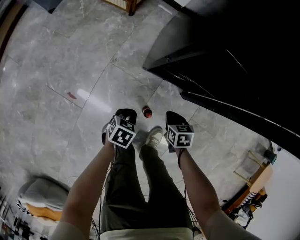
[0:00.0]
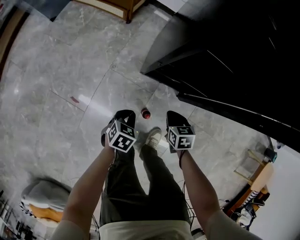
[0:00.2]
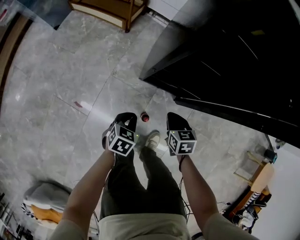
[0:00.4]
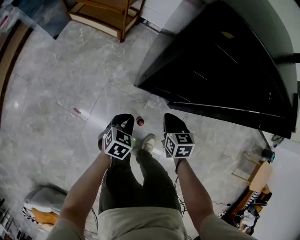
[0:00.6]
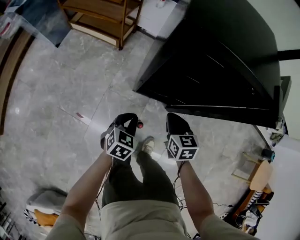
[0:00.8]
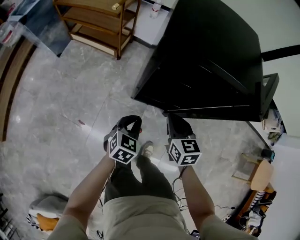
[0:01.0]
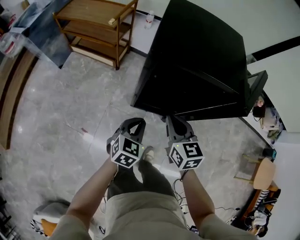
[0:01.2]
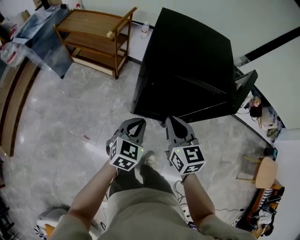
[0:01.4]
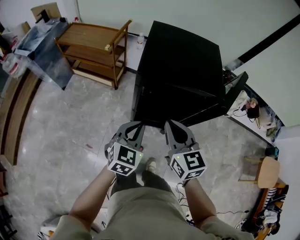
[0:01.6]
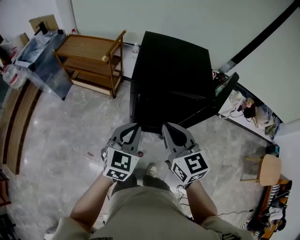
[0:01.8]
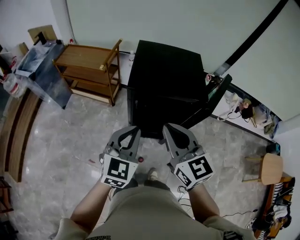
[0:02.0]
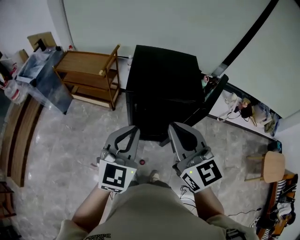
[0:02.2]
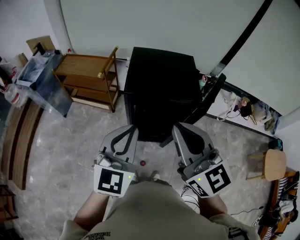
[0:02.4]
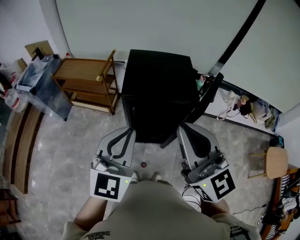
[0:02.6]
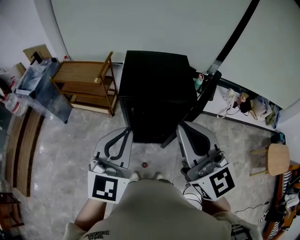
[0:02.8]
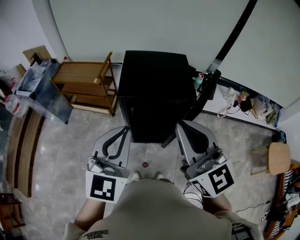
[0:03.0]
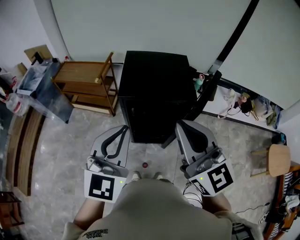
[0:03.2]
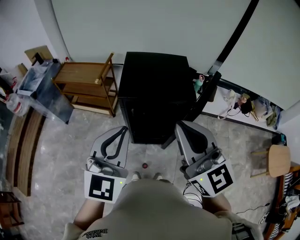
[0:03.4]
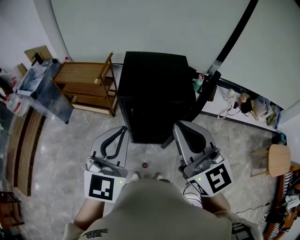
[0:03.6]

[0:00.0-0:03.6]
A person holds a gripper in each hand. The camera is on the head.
0:00.0 to 0:01.8: The two grippers go about 70 cm upward. The left gripper tips its fingers upward by approximately 40 degrees; the right gripper points its fingers some 50 degrees further upward.
0:01.8 to 0:03.6: Both grippers travel together upward, about 20 cm. The right gripper rotates roughly 20 degrees.

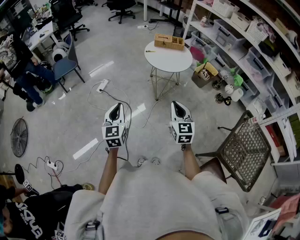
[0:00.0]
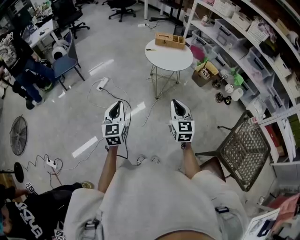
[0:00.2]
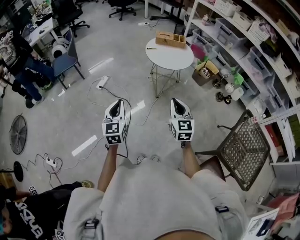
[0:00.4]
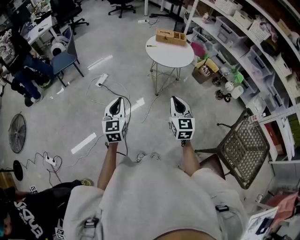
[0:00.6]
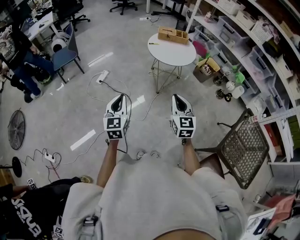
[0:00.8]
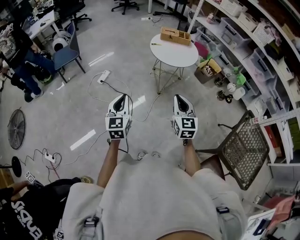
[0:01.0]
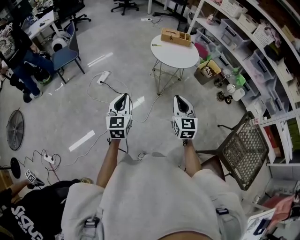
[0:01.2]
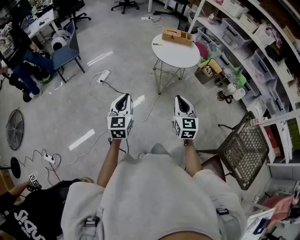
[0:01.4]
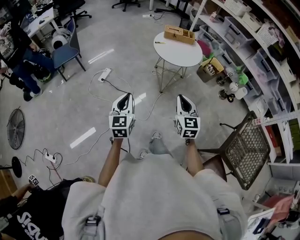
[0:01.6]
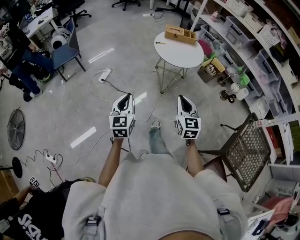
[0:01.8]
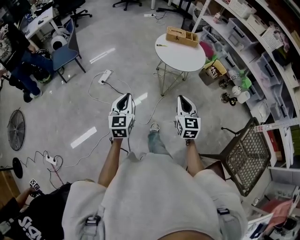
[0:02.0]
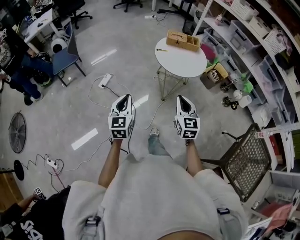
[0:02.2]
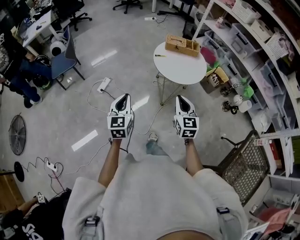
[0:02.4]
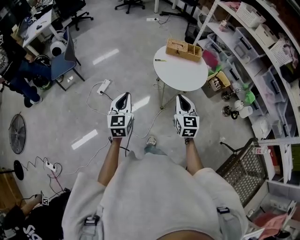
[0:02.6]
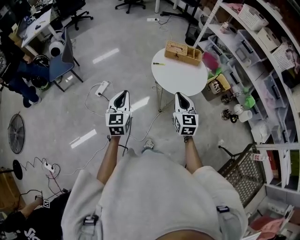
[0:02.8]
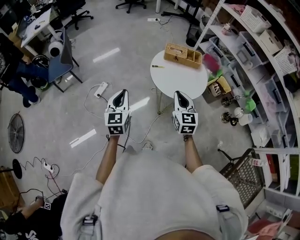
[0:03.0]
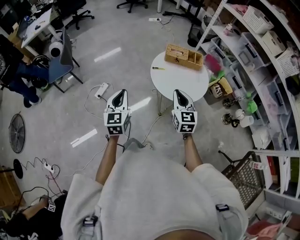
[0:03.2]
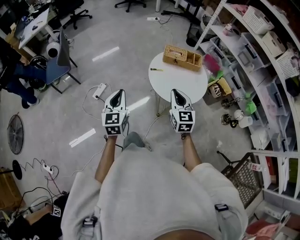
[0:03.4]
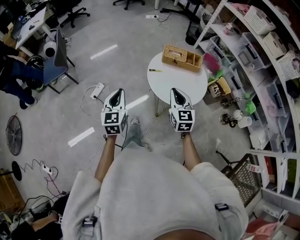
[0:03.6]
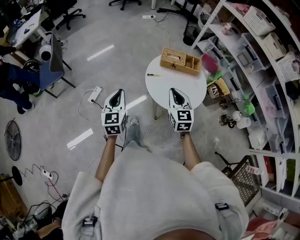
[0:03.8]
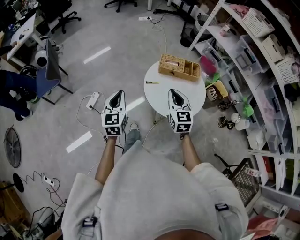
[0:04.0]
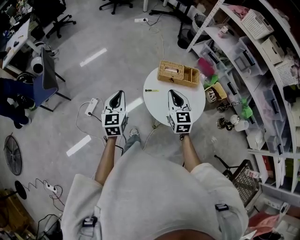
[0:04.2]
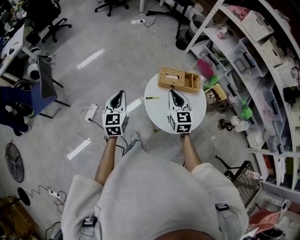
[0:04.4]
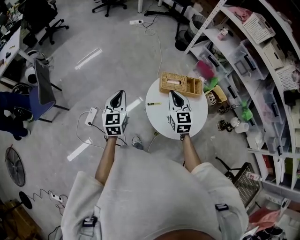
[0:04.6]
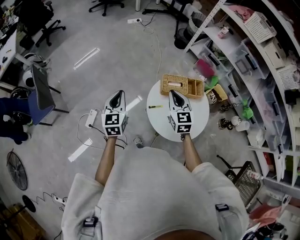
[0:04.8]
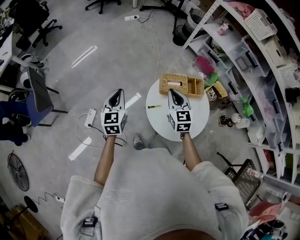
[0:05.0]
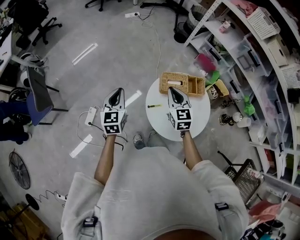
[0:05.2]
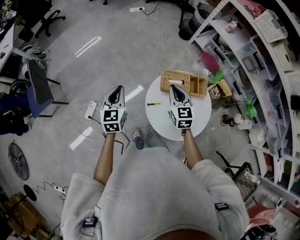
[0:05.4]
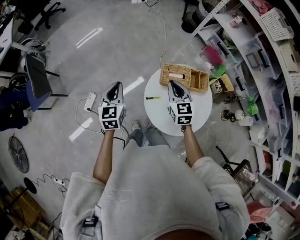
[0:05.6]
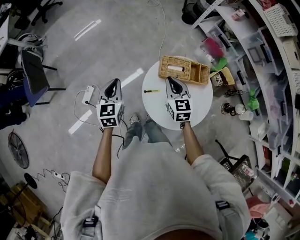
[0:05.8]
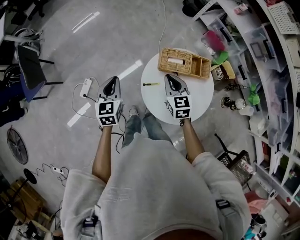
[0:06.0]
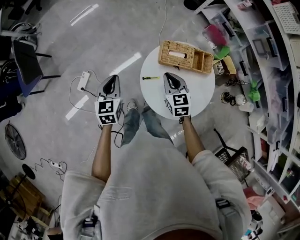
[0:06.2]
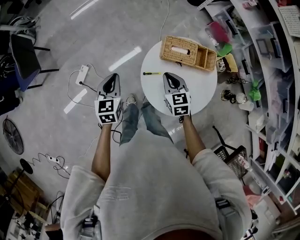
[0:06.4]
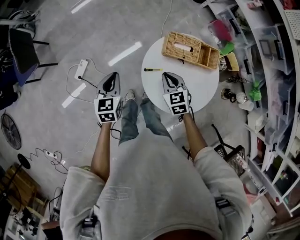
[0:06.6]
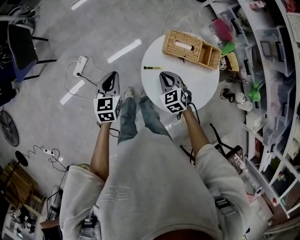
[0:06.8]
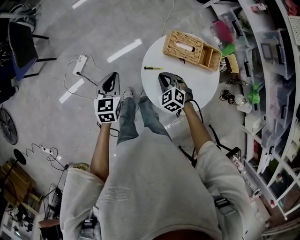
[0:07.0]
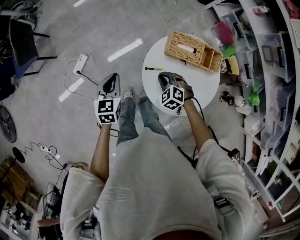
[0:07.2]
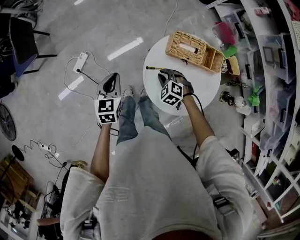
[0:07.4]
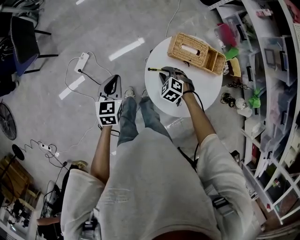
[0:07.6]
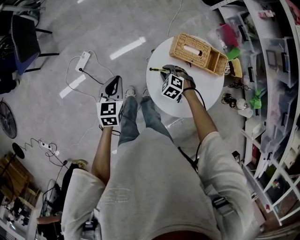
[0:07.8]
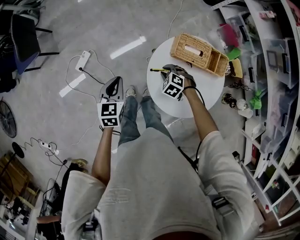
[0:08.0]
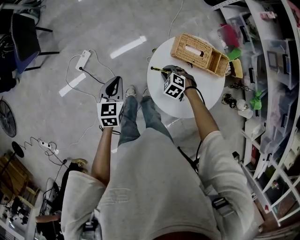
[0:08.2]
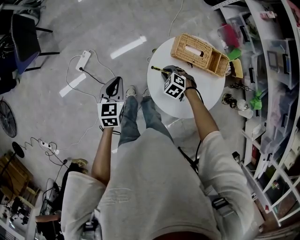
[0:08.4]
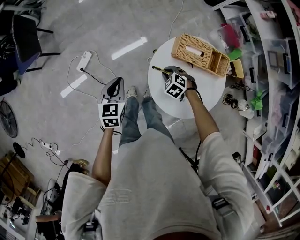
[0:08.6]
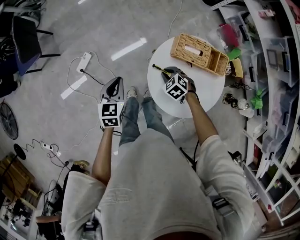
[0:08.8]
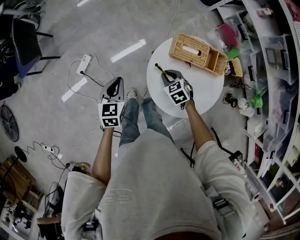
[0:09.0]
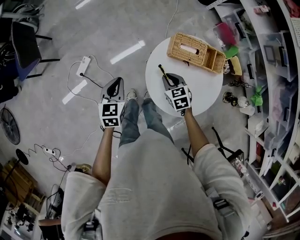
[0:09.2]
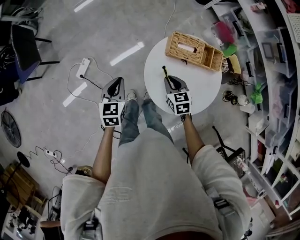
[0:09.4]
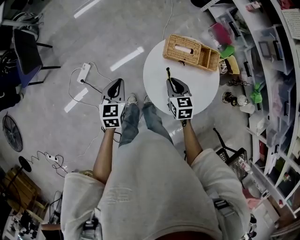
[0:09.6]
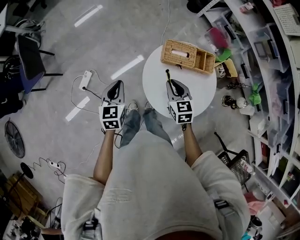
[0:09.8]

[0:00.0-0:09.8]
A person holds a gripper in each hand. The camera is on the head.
0:00.0 to 0:01.4: The right gripper ends up approximately 5 cm from where it was.
0:01.4 to 0:02.8: Both grippers move forward, roughly 30 cm.
0:02.8 to 0:04.2: The grippers both shift forward by roughly 25 cm.
0:04.2 to 0:05.6: The left gripper shifts roughly 15 cm forward. Meanwhile the right gripper is displaced forward and downward by roughly 15 cm.
0:05.6 to 0:07.0: The grippers both shift downward and backward by about 15 cm. The right gripper swivels roughly 50 degrees.
0:07.0 to 0:08.4: The right gripper shifts approximately 5 cm downward.
0:08.4 to 0:09.8: The right gripper is displaced upward by about 15 cm, and tips its fingers upward by about 30 degrees; the left gripper goes approximately 5 cm upward.

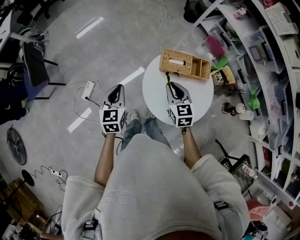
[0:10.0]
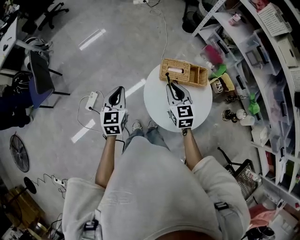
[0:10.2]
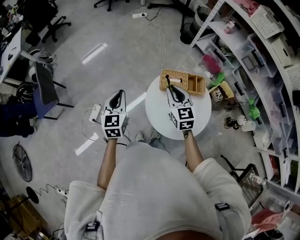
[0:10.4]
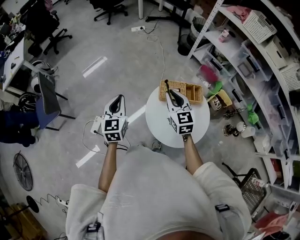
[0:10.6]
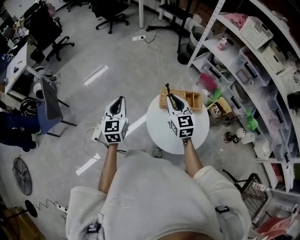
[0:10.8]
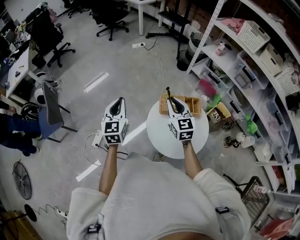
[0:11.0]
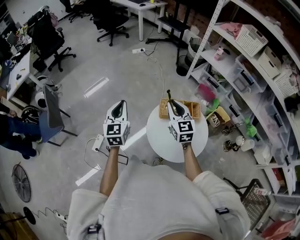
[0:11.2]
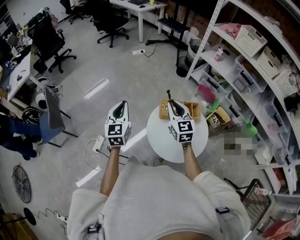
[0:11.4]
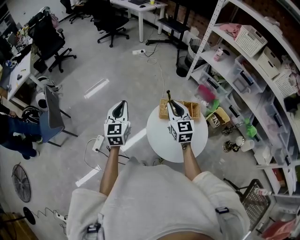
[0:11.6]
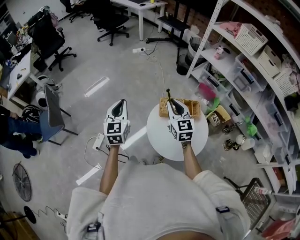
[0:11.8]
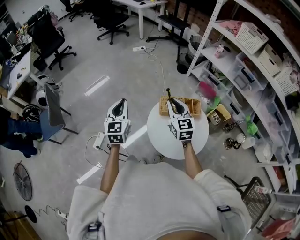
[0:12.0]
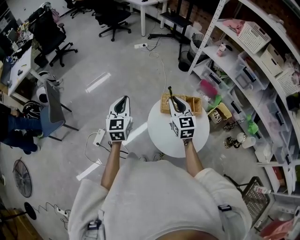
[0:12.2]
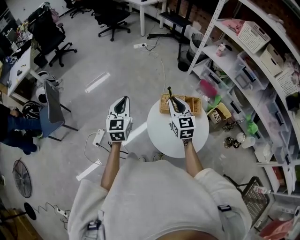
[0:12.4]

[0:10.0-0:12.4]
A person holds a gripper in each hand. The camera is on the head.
0:10.0 to 0:11.2: The grippers both shift upward and forward by some 15 cm. The right gripper swivels approximately 20 degrees.
0:11.2 to 0:12.4: Neither gripper changes place.

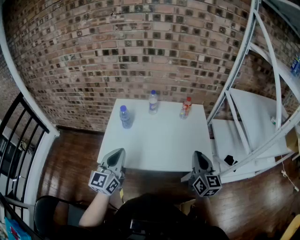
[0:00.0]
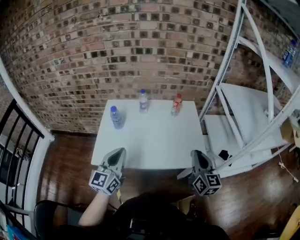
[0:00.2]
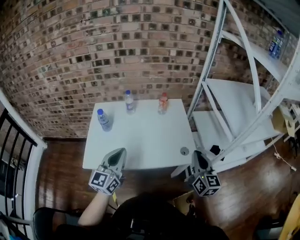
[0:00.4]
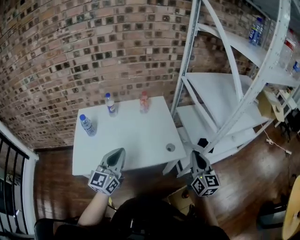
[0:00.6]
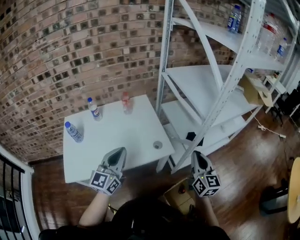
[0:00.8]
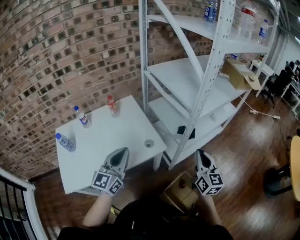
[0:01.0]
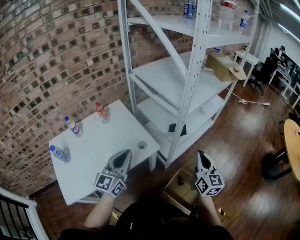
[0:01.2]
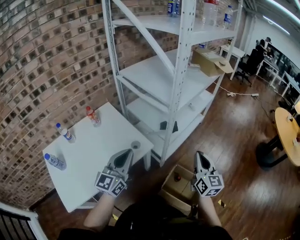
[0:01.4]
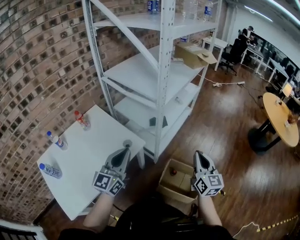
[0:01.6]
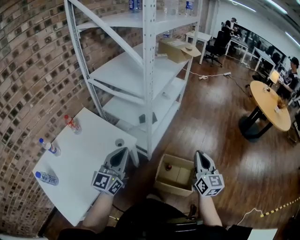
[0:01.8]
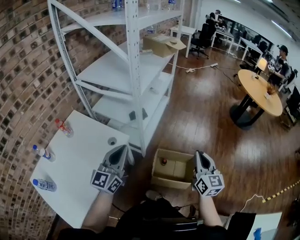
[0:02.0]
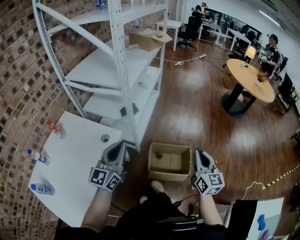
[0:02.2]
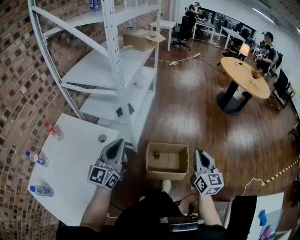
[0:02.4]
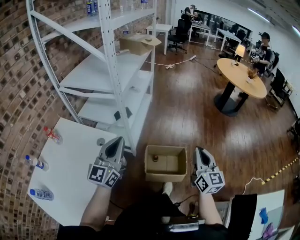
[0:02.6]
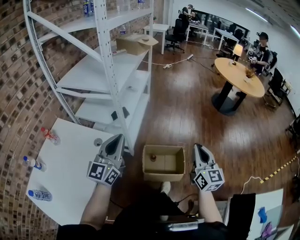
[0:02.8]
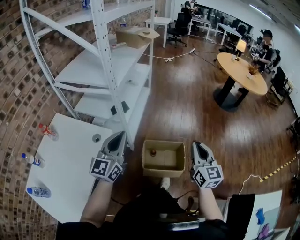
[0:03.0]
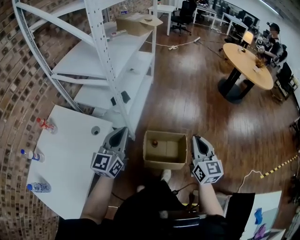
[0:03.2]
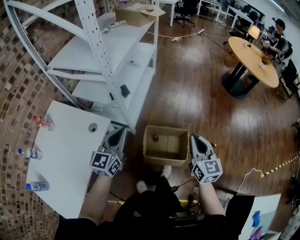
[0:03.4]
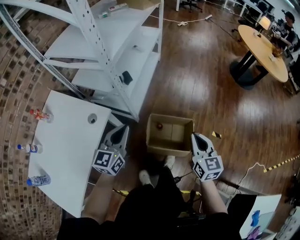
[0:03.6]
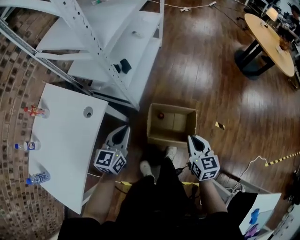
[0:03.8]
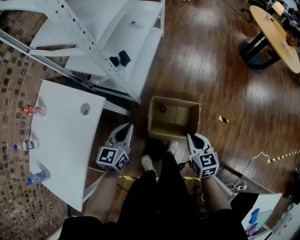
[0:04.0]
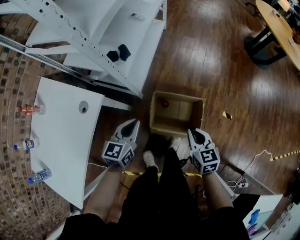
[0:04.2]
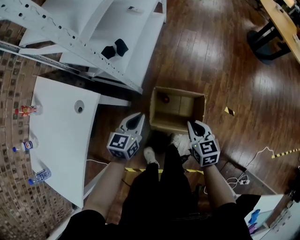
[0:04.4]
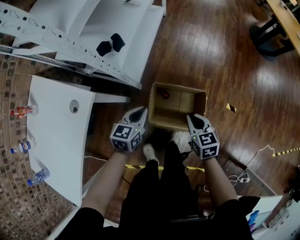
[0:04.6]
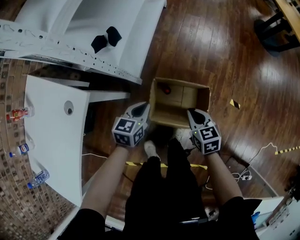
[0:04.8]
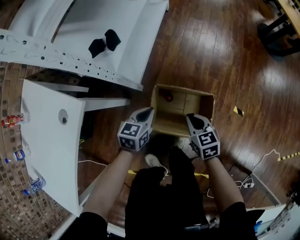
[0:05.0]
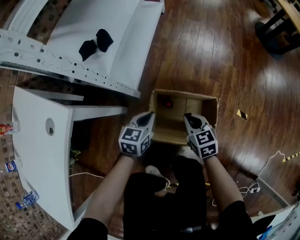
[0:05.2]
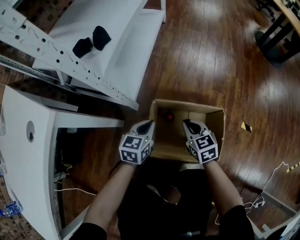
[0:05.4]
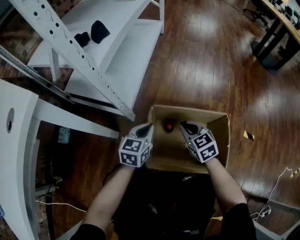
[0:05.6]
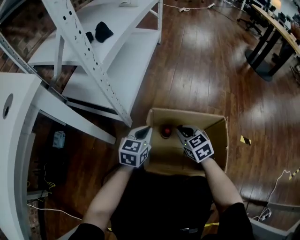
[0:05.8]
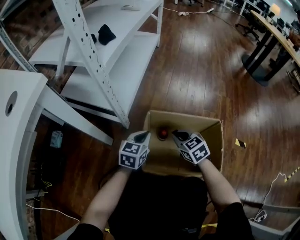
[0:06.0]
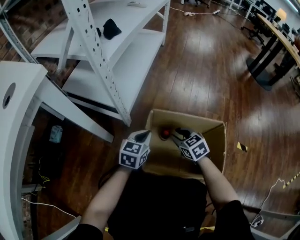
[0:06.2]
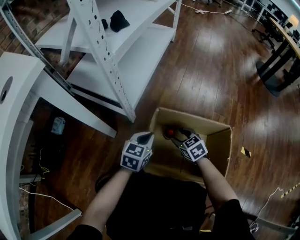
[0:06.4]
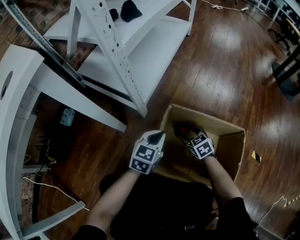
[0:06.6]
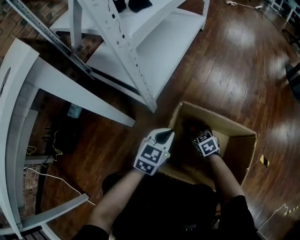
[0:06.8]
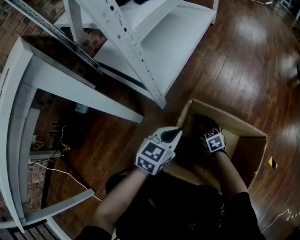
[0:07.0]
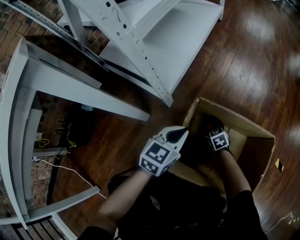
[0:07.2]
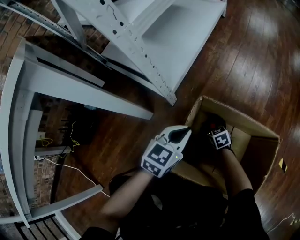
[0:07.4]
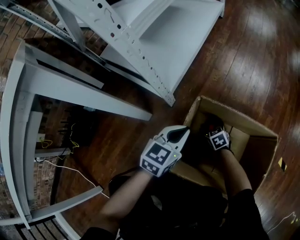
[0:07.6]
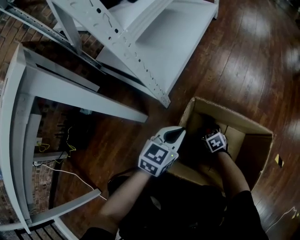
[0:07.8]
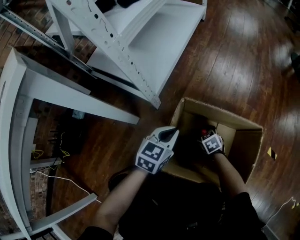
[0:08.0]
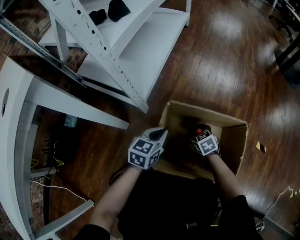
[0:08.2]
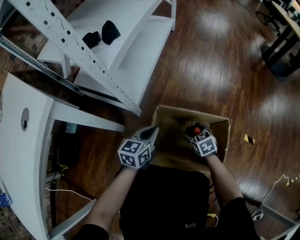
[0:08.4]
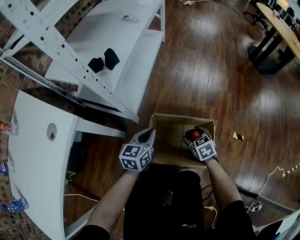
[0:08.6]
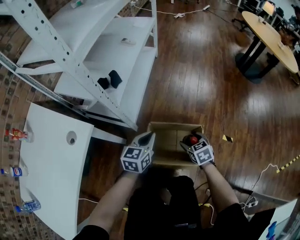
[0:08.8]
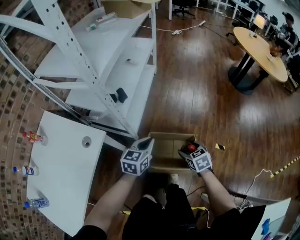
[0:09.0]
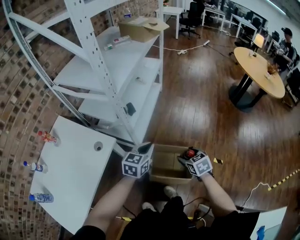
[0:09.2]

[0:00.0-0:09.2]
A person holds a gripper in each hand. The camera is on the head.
0:00.0 to 0:01.6: The left gripper moves approximately 35 cm, and changes its angle by about 60 degrees. Meanwhile the right gripper changes place by about 40 cm, and changes its angle by approximately 60 degrees.
0:01.6 to 0:03.0: The left gripper shifts about 15 cm to the right, while the right gripper moves to the right and backward, about 20 cm, and changes its angle by about 20 degrees.
0:03.0 to 0:04.6: Both grippers move downward and forward, some 40 cm. The right gripper points its fingers about 40 degrees further downward. The left gripper tips its fingers downward by some 40 degrees.
0:04.6 to 0:06.2: The grippers both shift downward by some 40 cm. The right gripper changes its angle by about 20 degrees.
0:06.2 to 0:07.6: The right gripper heads downward, covering roughly 20 cm, and opens.
0:07.6 to 0:09.2: Both grippers travel together upward, about 70 cm.
